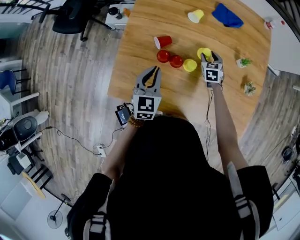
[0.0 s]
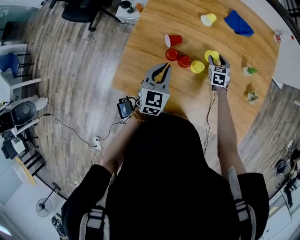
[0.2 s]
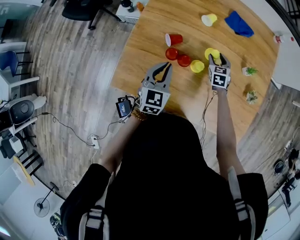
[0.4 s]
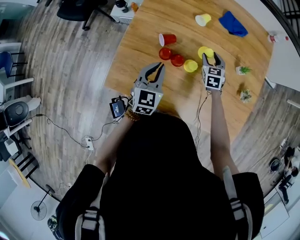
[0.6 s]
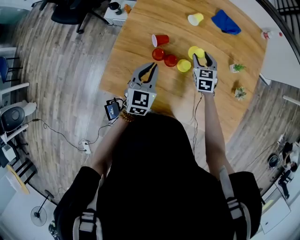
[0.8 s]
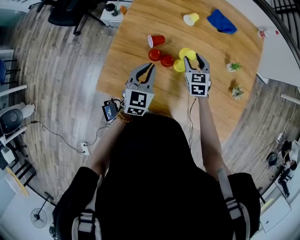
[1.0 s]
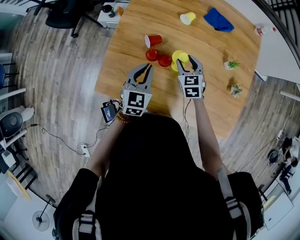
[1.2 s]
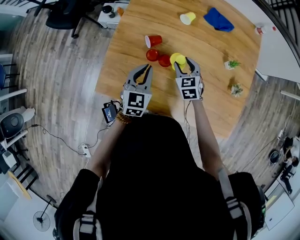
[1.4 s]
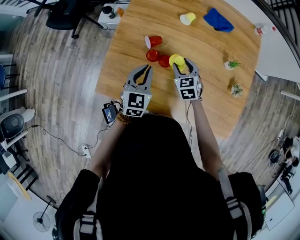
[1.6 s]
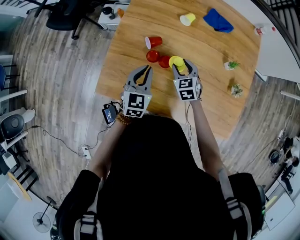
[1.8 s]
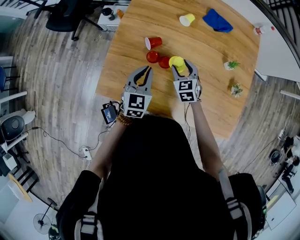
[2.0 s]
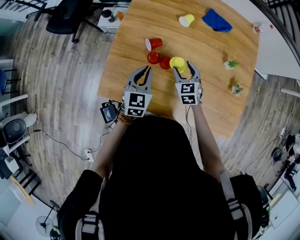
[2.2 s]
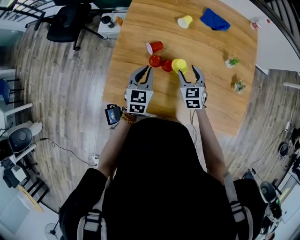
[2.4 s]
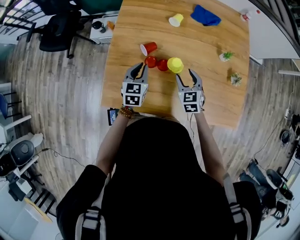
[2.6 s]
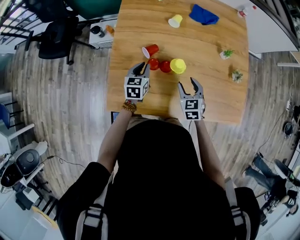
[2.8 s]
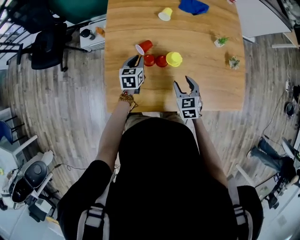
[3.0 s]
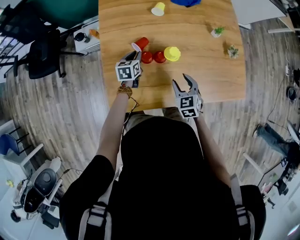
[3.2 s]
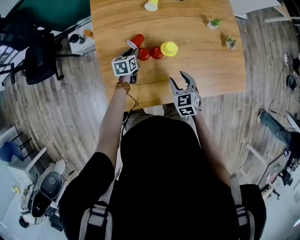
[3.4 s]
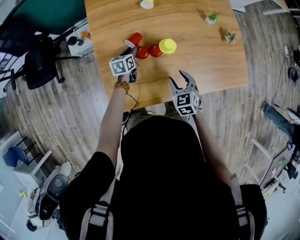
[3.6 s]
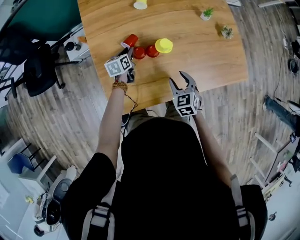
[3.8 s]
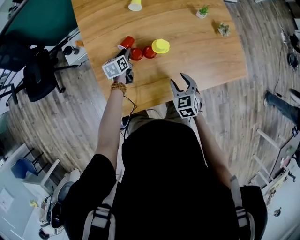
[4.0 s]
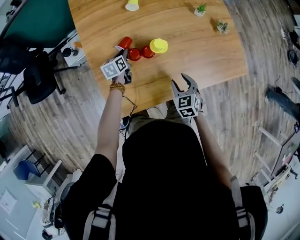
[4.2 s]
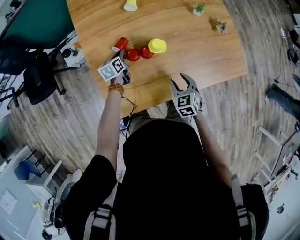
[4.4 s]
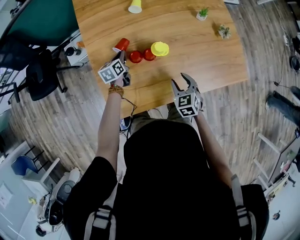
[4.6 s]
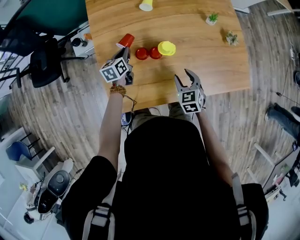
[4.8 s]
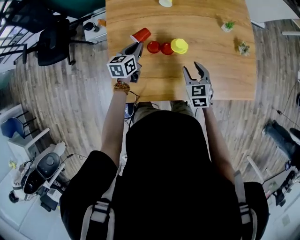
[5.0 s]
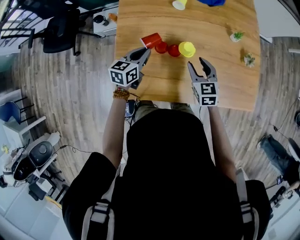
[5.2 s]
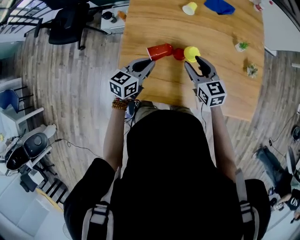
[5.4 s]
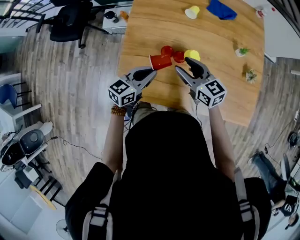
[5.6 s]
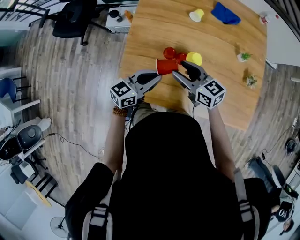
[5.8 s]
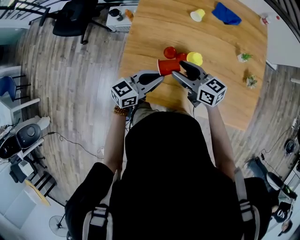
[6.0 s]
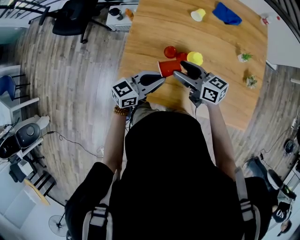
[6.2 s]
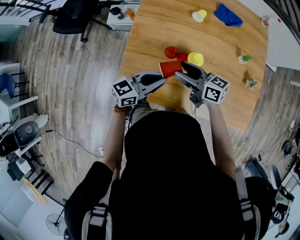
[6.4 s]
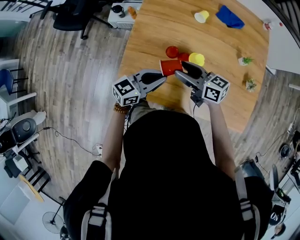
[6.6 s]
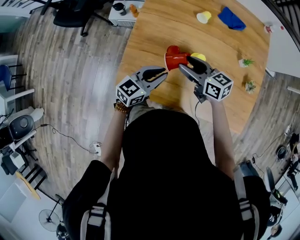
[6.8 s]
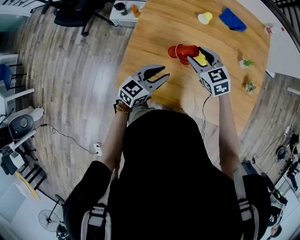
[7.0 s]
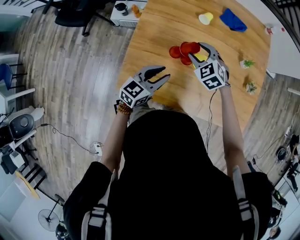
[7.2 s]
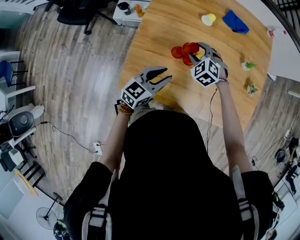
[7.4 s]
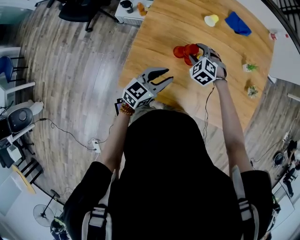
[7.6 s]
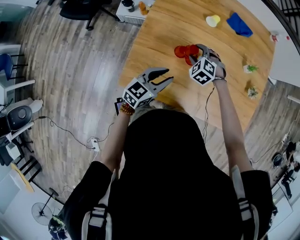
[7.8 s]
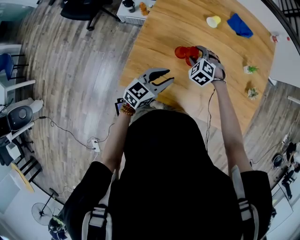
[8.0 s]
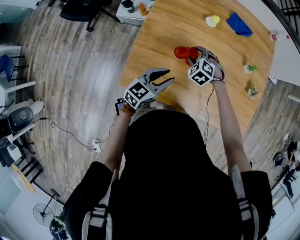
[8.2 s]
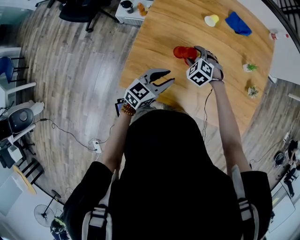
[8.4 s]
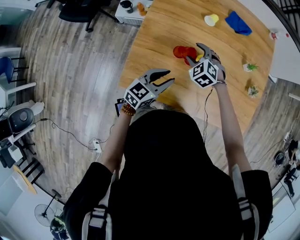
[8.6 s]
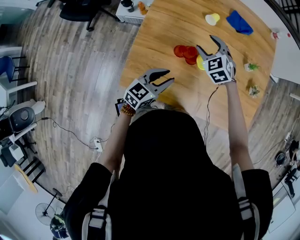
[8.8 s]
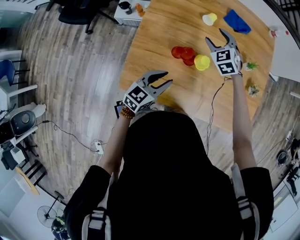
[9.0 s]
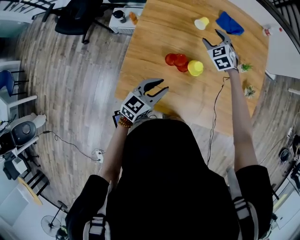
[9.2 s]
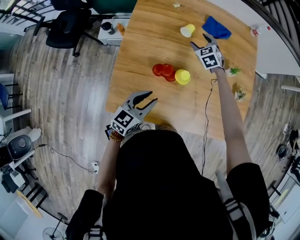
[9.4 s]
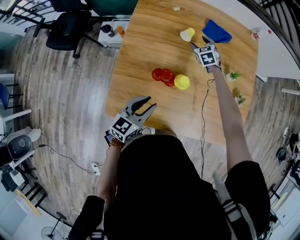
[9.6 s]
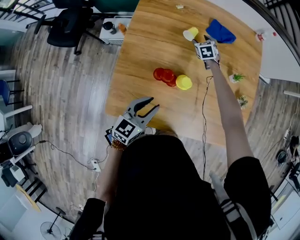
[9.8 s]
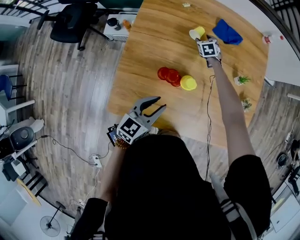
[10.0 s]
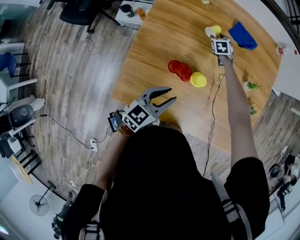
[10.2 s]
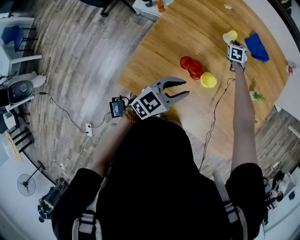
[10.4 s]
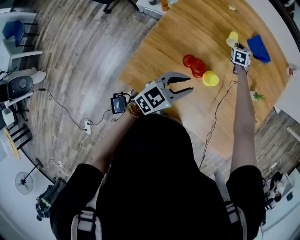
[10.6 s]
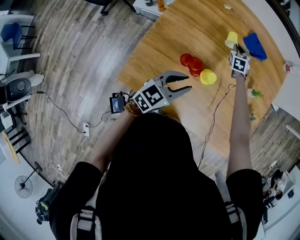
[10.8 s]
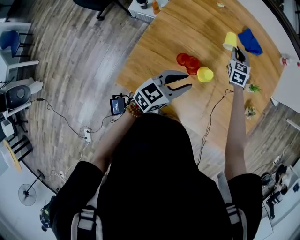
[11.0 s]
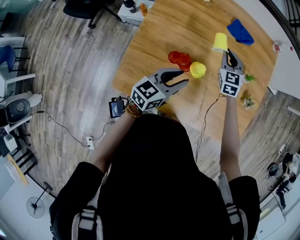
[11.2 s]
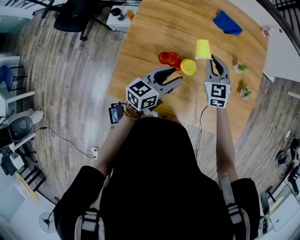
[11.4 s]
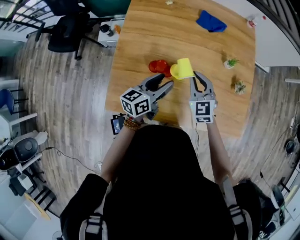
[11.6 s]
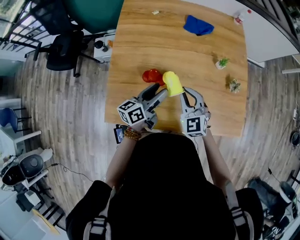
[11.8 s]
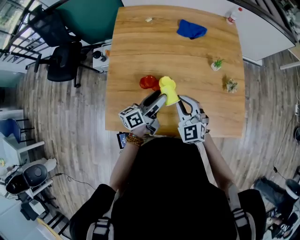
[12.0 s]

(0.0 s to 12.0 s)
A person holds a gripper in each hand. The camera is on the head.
0.0 s - 1.6 s: The right gripper travels to the left, upward and backward by roughly 15 cm.
1.6 s - 3.0 s: The right gripper moves backward, approximately 10 cm, and turns by about 20 degrees; the left gripper is displaced downward and forward by some 15 cm, and changes its angle by some 20 degrees.
3.0 s - 4.4 s: The right gripper shifts approximately 5 cm backward. Meanwhile the left gripper shifts some 5 cm downward.
4.4 s - 6.0 s: The right gripper moves roughly 20 cm, and tips its fingers upward by roughly 30 degrees. The left gripper goes about 20 cm upward, and tips its fingers upward by some 30 degrees.
6.0 s - 7.6 s: The right gripper goes roughly 15 cm forward and downward, and tips its fingers downward by roughly 40 degrees.
7.6 s - 9.0 s: The right gripper moves forward and upward, about 15 cm, and turns by roughly 20 degrees.
9.0 s - 10.4 s: The left gripper is displaced forward by roughly 5 cm, while the right gripper moves forward and downward, about 30 cm, turns by approximately 30 degrees, and closes.
10.4 s - 12.0 s: The left gripper is displaced to the right by approximately 5 cm, rolls counterclockwise, seen from behind, by roughly 40 degrees, and opens its fingers; the right gripper goes approximately 50 cm backward and upward, and rotates about 40 degrees.

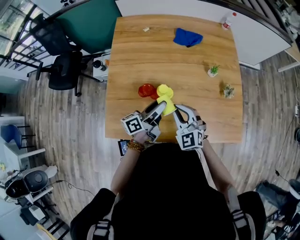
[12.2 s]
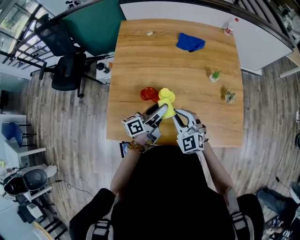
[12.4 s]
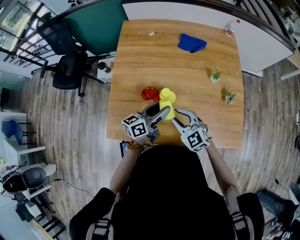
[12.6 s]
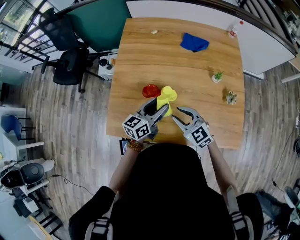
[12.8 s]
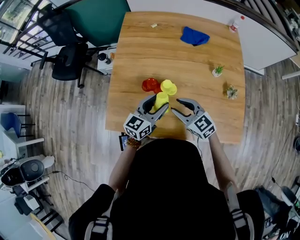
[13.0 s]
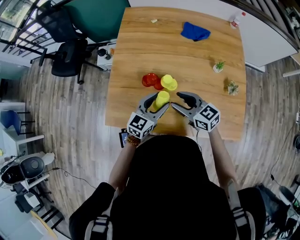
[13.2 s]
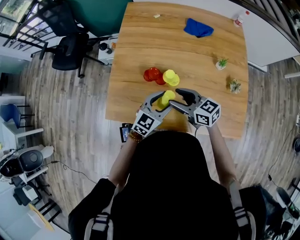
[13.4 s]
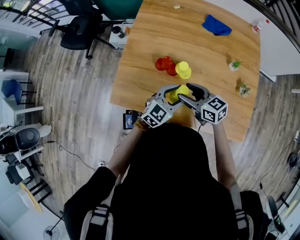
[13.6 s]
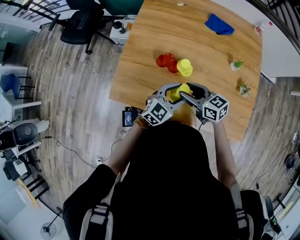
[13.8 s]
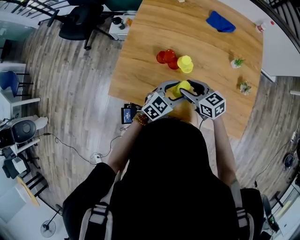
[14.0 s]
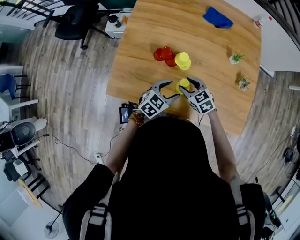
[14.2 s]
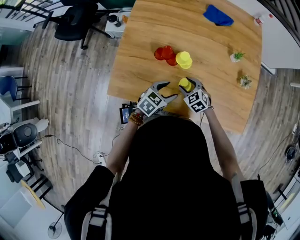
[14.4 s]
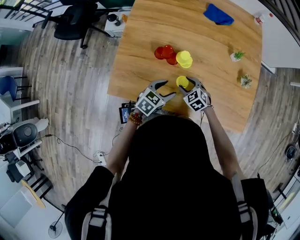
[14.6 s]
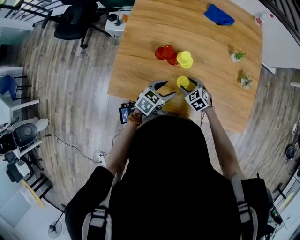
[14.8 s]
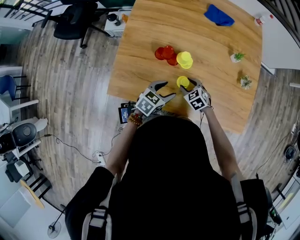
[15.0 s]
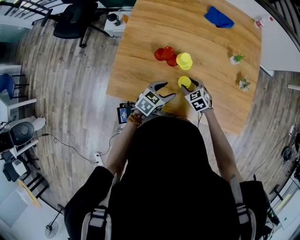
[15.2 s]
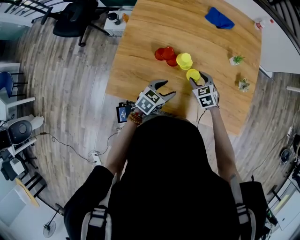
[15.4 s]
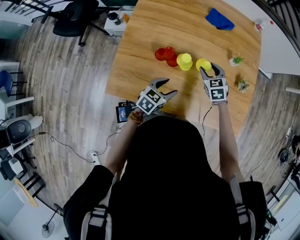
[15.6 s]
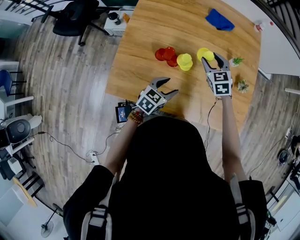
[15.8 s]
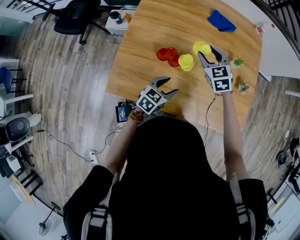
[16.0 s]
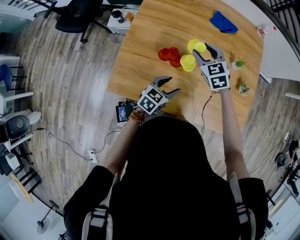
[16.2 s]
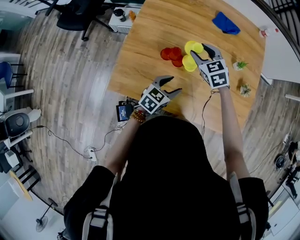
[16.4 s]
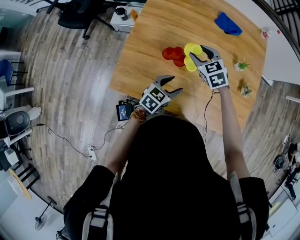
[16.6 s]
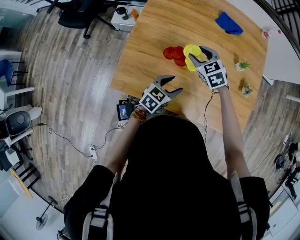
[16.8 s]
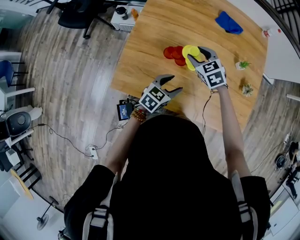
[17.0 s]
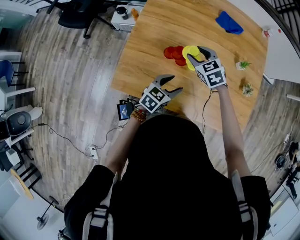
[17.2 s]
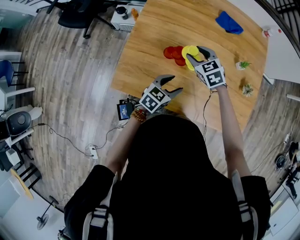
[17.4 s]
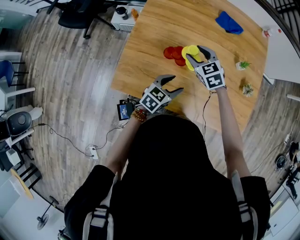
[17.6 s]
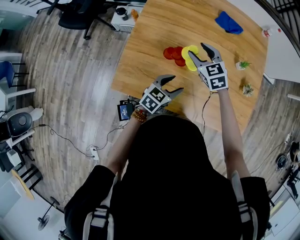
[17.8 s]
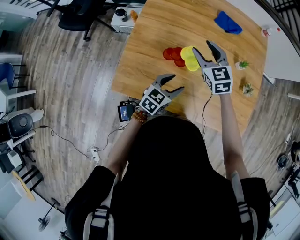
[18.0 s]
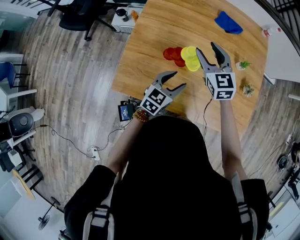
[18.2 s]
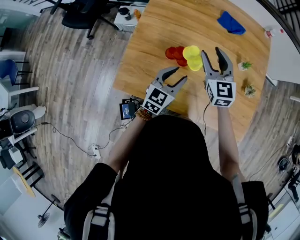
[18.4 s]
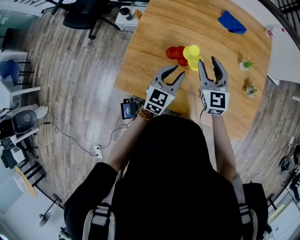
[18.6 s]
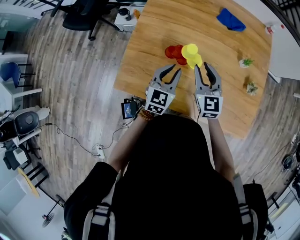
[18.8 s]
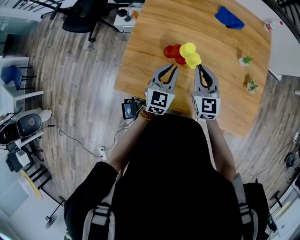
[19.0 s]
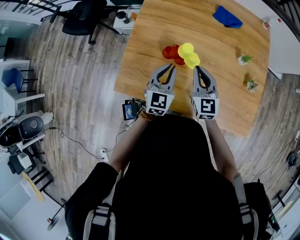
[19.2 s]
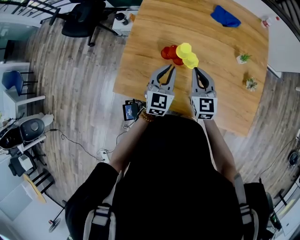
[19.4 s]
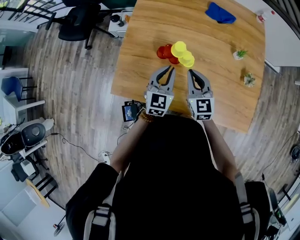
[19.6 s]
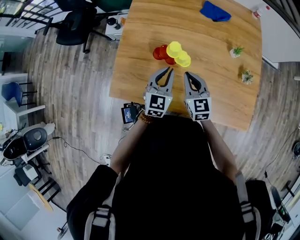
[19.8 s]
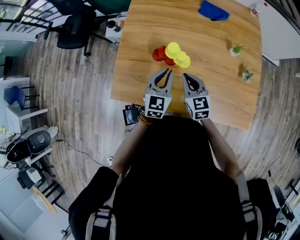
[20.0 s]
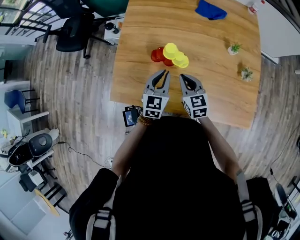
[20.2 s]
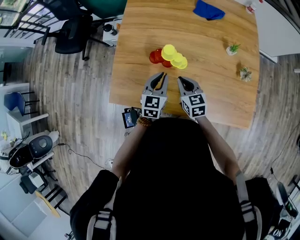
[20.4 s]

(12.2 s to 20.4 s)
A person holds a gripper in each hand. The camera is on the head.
12.2 s - 13.8 s: The right gripper shifts by some 5 cm, turns by roughly 60 degrees, and opens up. Meanwhile the left gripper travels backward by some 10 cm, and rotates around the line of its fingers by approximately 70 degrees, clockwise from behind.
13.8 s - 15.4 s: The right gripper heads downward, forward and to the right, covering approximately 15 cm, and rotates some 50 degrees, while the left gripper is displaced downward and to the left by roughly 10 cm, and changes its angle by roughly 30 degrees.
15.4 s - 17.2 s: The right gripper is displaced to the left, upward and forward by roughly 15 cm.
17.2 s - 18.8 s: The left gripper is displaced upward by some 5 cm, turns by about 30 degrees, and closes its fingers. The right gripper is displaced backward and upward by some 10 cm, and swivels about 30 degrees.
18.8 s - 20.4 s: The right gripper is displaced downward by approximately 10 cm, changes its angle by some 20 degrees, and closes up. Meanwhile the left gripper moves downward, about 5 cm.

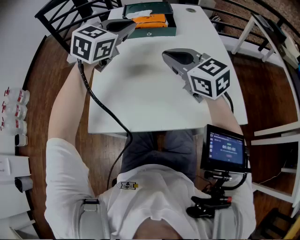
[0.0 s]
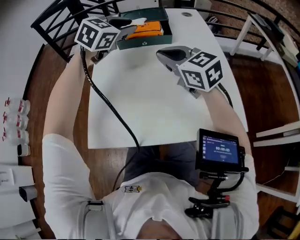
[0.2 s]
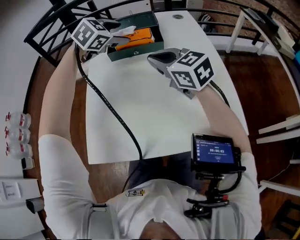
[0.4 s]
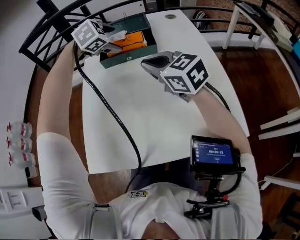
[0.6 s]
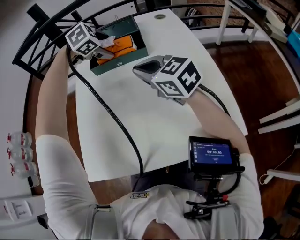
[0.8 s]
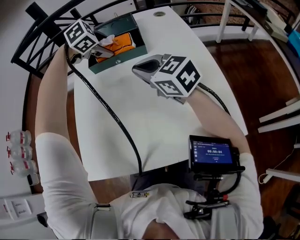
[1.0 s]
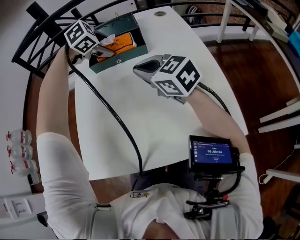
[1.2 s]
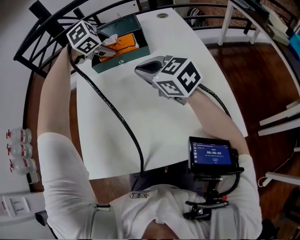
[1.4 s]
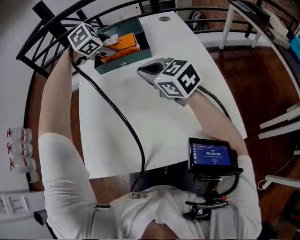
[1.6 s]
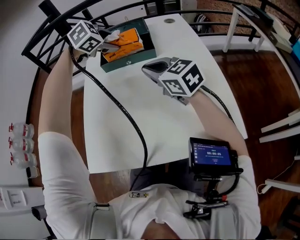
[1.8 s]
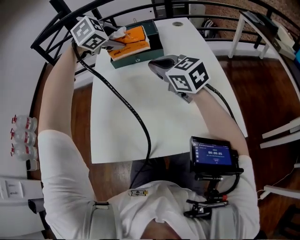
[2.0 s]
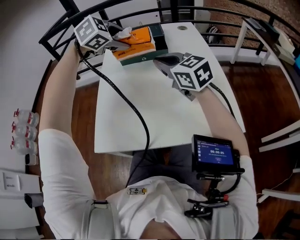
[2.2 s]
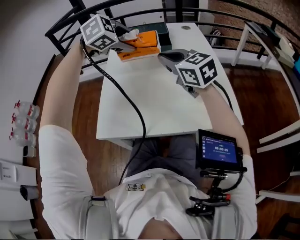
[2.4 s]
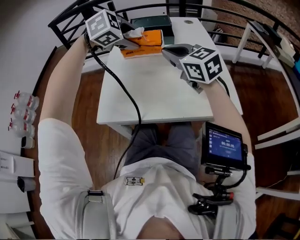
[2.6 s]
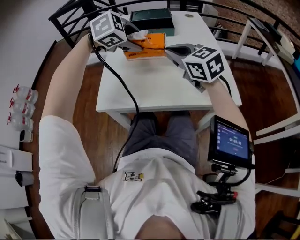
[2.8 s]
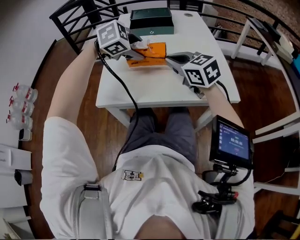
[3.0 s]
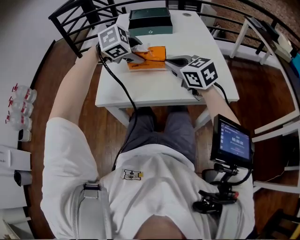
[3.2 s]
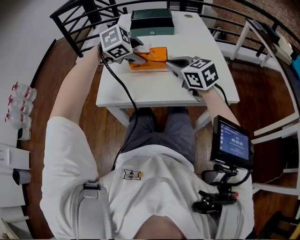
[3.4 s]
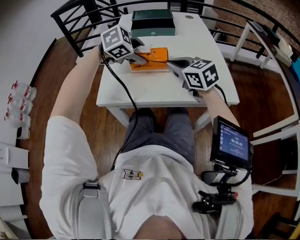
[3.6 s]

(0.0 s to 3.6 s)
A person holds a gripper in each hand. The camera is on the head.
0.0 s - 1.8 s: The right gripper heads forward, covering approximately 10 cm. Meanwhile the left gripper heads forward and downward, covering about 15 cm, points its fingers about 40 degrees further downward, and opens its fingers.
1.8 s - 3.6 s: The left gripper shifts about 25 cm backward; the right gripper goes about 10 cm backward.
